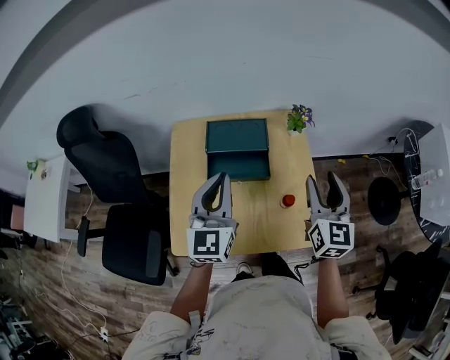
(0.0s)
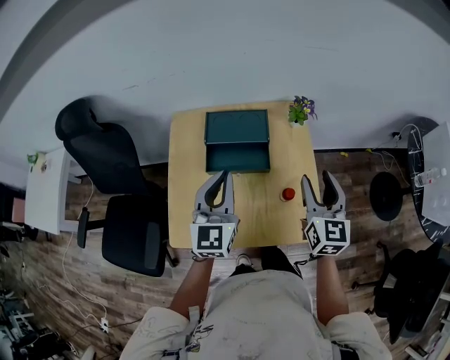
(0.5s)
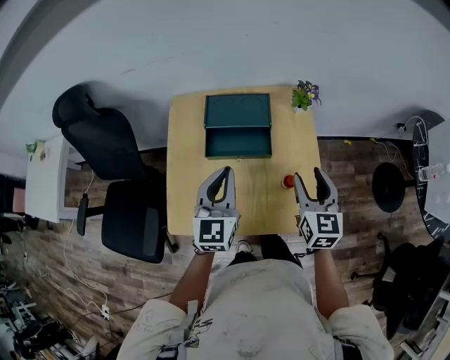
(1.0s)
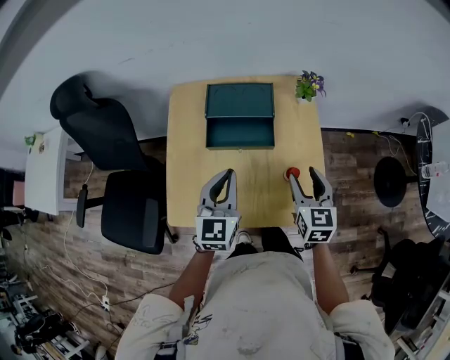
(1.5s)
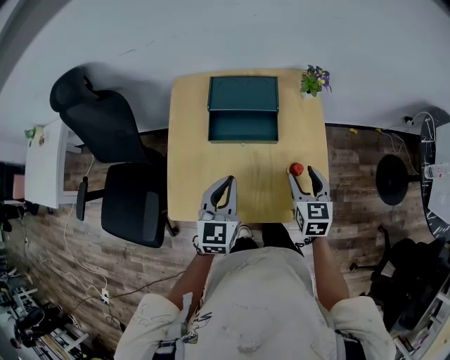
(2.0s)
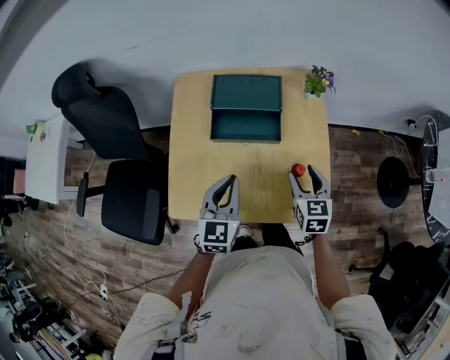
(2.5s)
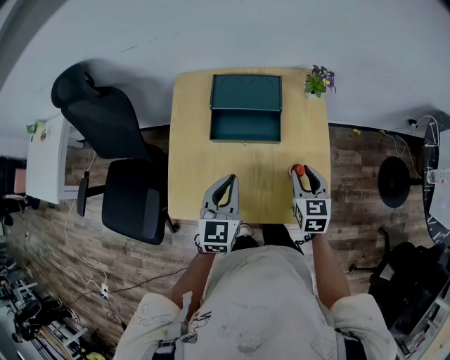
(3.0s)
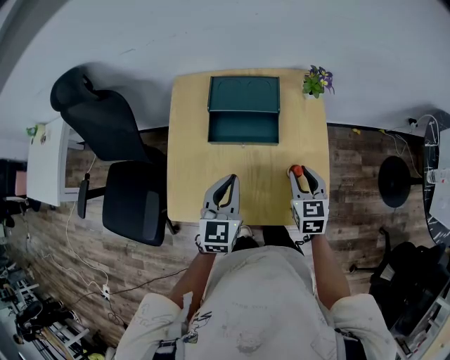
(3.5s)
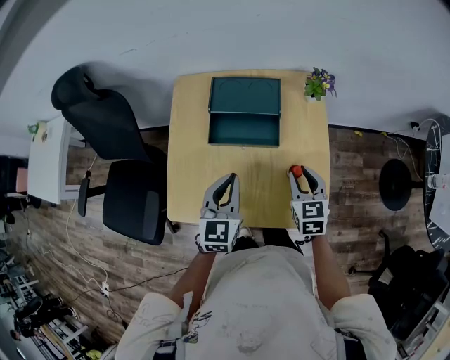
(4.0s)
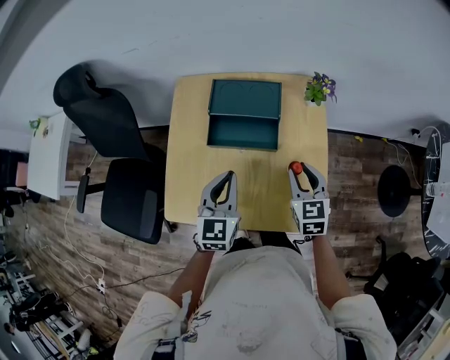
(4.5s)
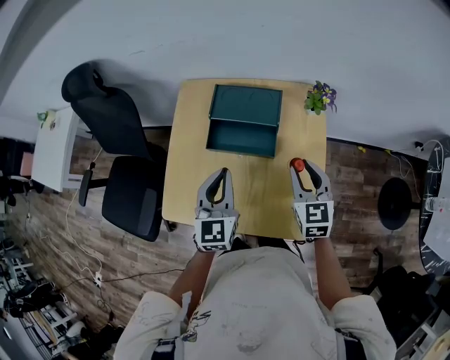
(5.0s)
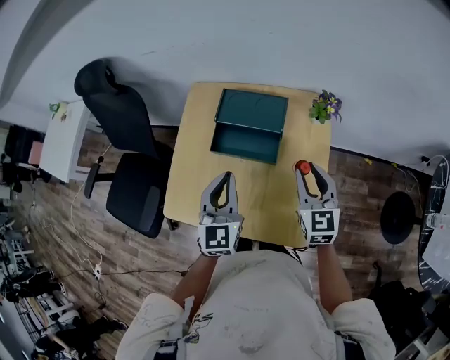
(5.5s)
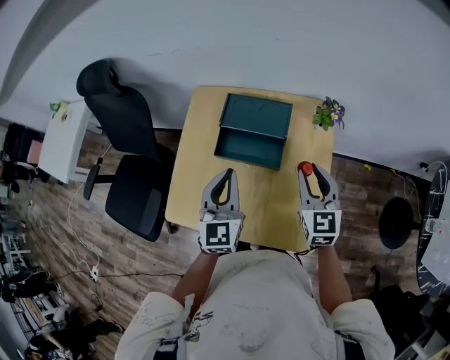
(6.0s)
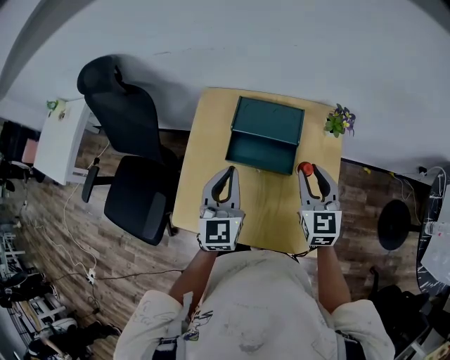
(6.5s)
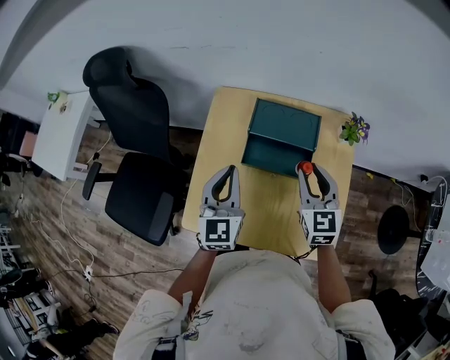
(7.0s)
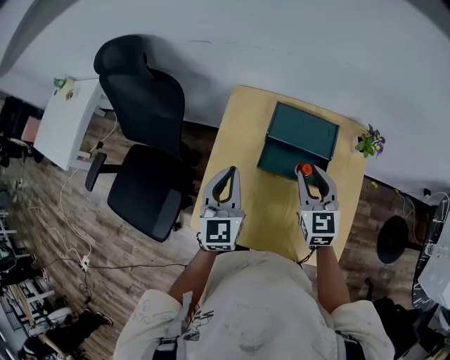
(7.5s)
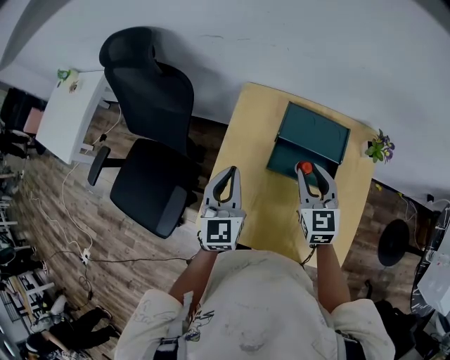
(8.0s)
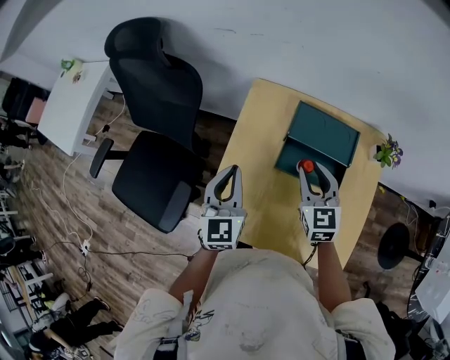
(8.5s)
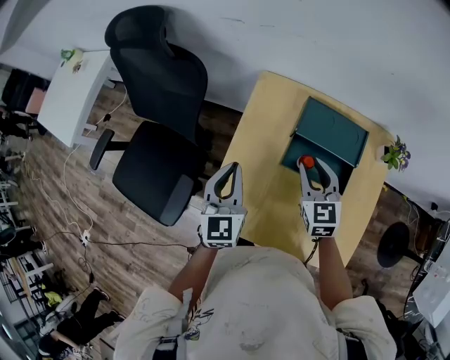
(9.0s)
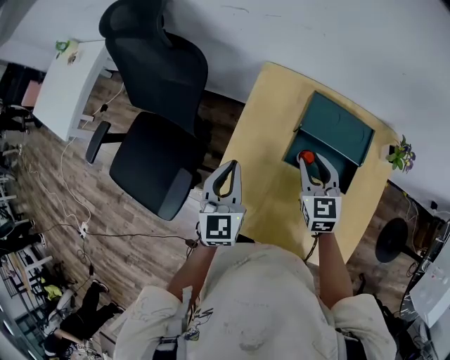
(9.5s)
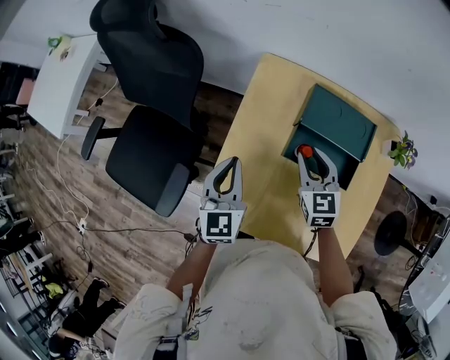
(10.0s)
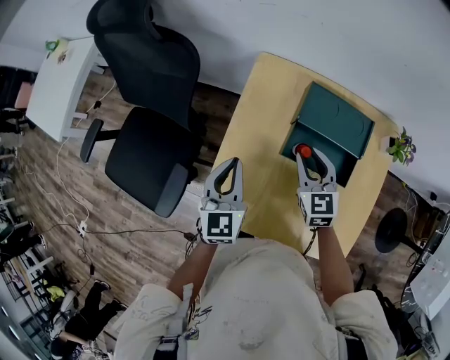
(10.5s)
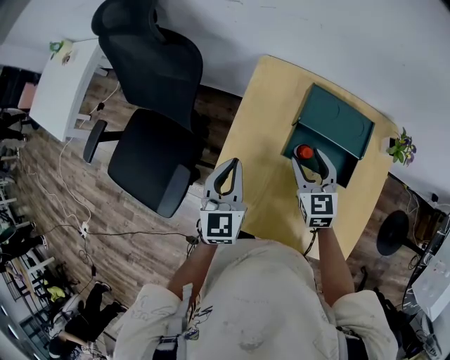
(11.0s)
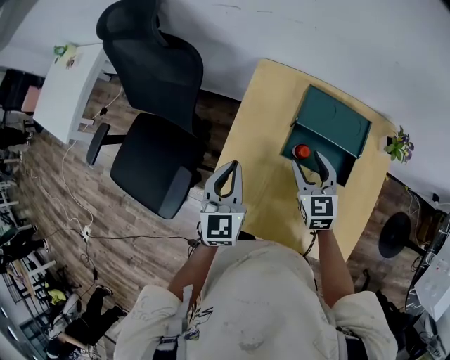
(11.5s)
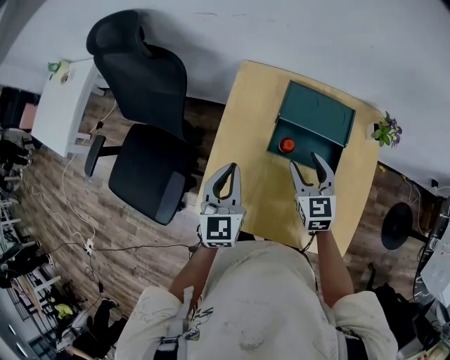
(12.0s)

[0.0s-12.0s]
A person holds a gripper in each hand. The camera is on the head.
0.0s to 2.0s: The left gripper goes approximately 15 cm downward and backward. Meanwhile the right gripper goes some 20 cm downward, and changes its angle by roughly 30 degrees.
2.0s to 4.0s: The right gripper closes its fingers.
4.0s to 6.0s: The left gripper is displaced upward by approximately 5 cm; the right gripper is displaced upward and forward by about 10 cm.
6.0s to 8.0s: The right gripper heads to the left and forward, covering approximately 20 cm; the left gripper heads to the left, covering roughly 20 cm.
8.0s to 10.0s: Both grippers move downward, about 5 cm.
10.0s to 12.0s: The left gripper moves about 5 cm, while the right gripper heads backward, covering roughly 5 cm, and opens its fingers.

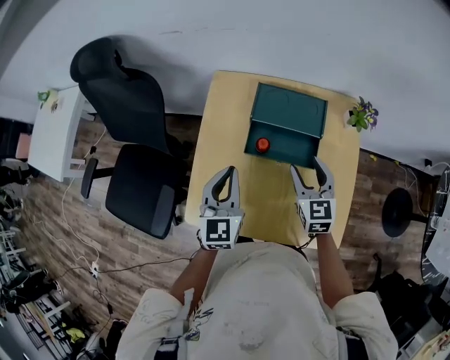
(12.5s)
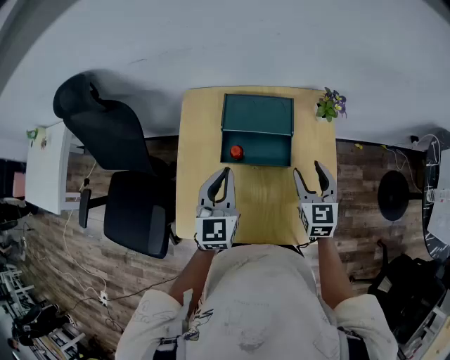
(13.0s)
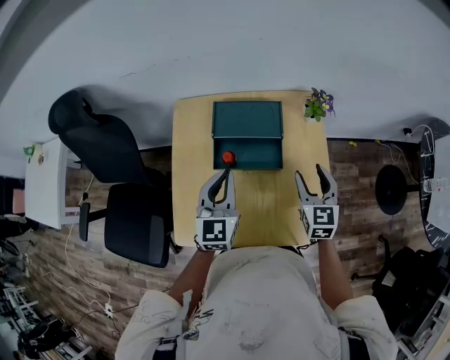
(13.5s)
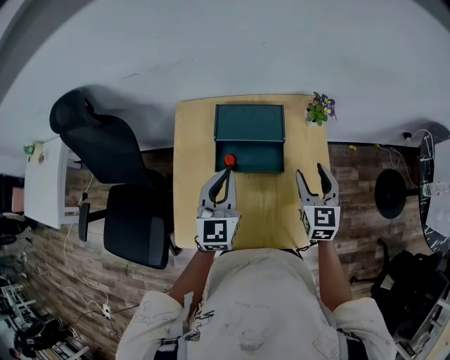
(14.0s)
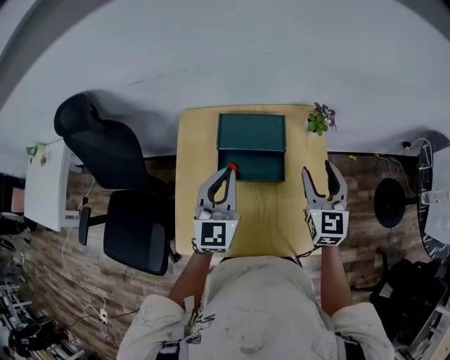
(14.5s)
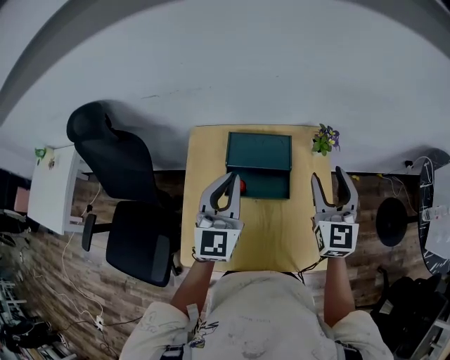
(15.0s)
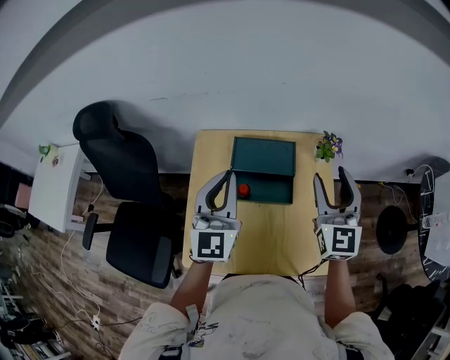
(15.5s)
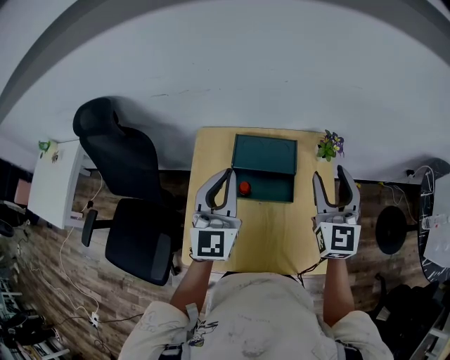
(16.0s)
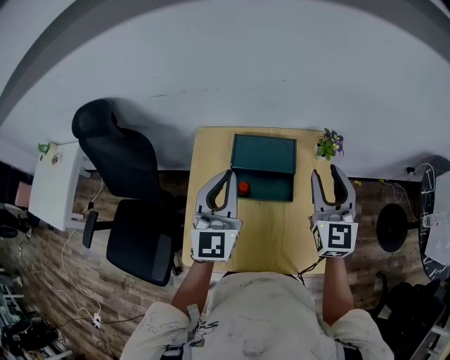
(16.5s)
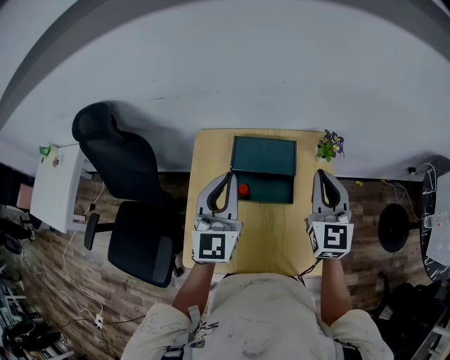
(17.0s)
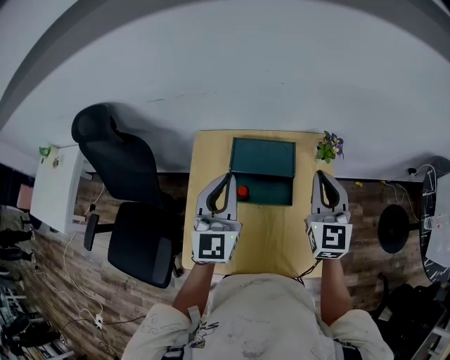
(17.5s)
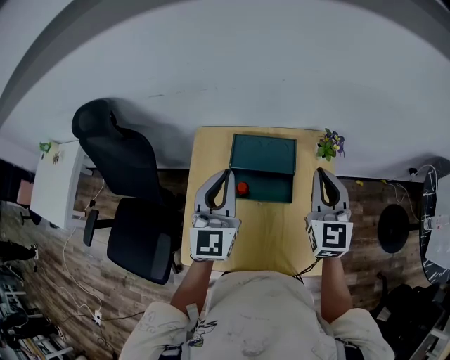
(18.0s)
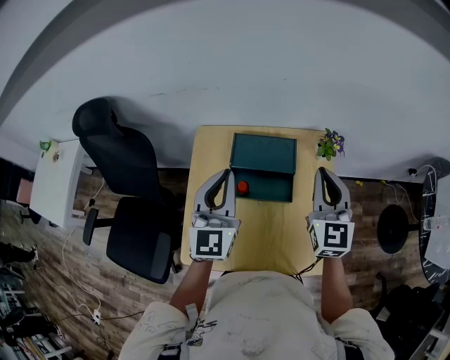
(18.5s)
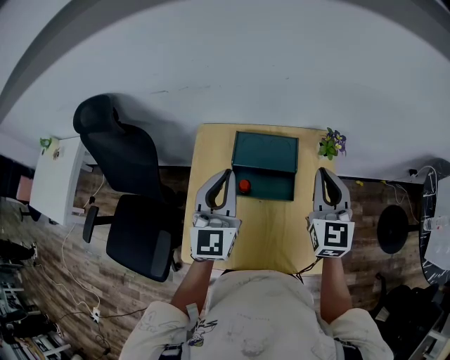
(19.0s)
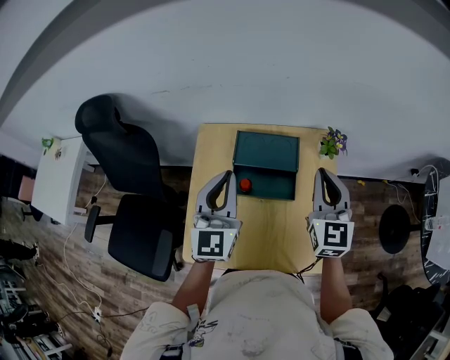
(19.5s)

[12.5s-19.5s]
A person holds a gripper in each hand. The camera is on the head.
12.5s to 14.5s: The right gripper is displaced to the right and upward by roughly 15 cm, and swivels about 20 degrees. The left gripper is displaced to the right, upward and forward by roughly 10 cm.
14.5s to 16.0s: Both grippers travel together upward, some 10 cm.
16.0s to 17.5s: The right gripper closes.
17.5s to 19.5s: The grippers move only a little.

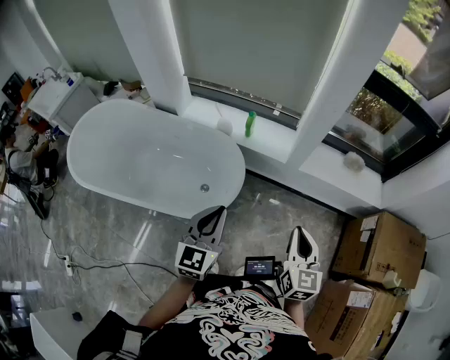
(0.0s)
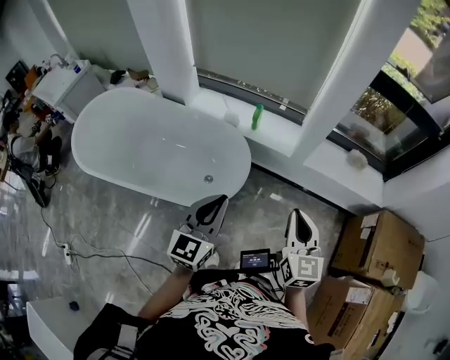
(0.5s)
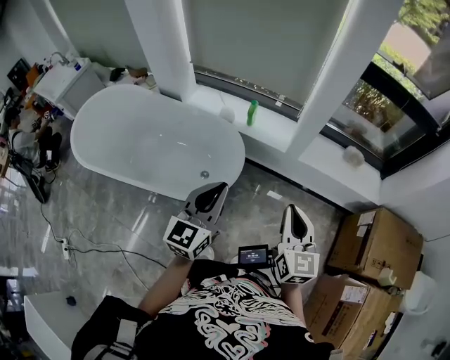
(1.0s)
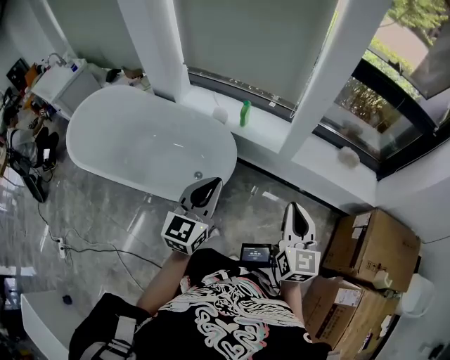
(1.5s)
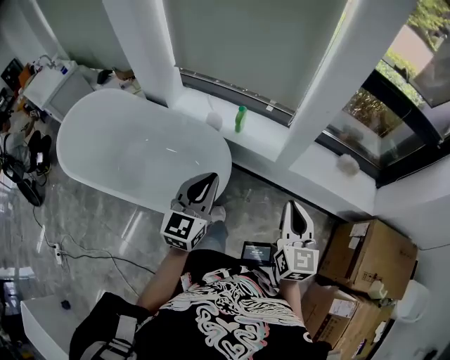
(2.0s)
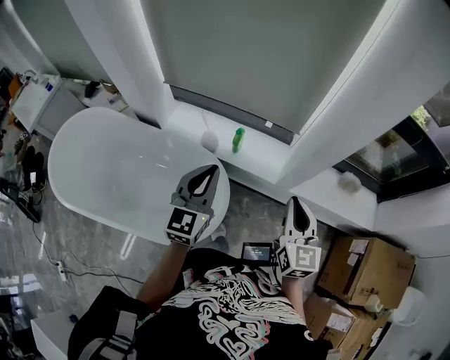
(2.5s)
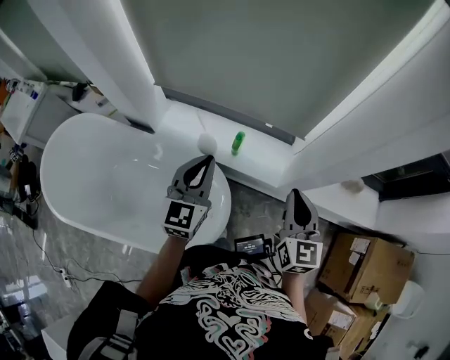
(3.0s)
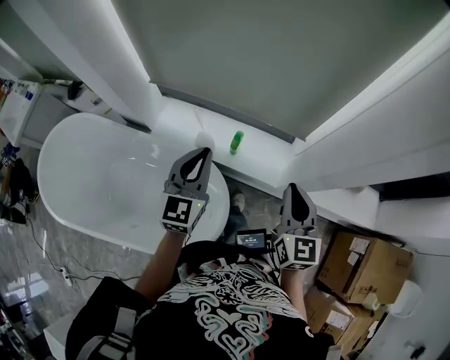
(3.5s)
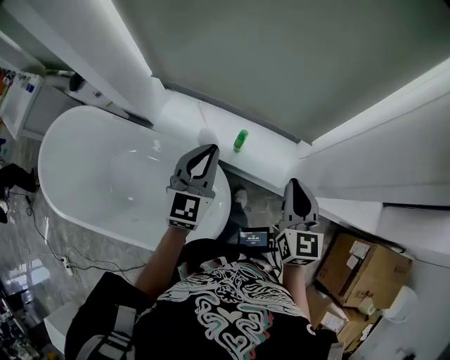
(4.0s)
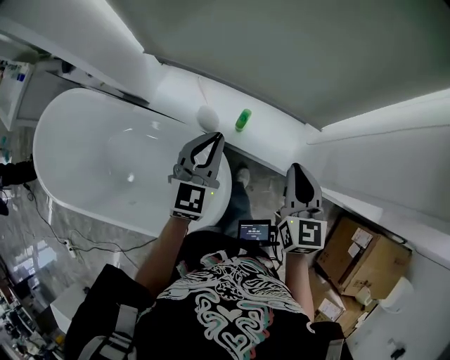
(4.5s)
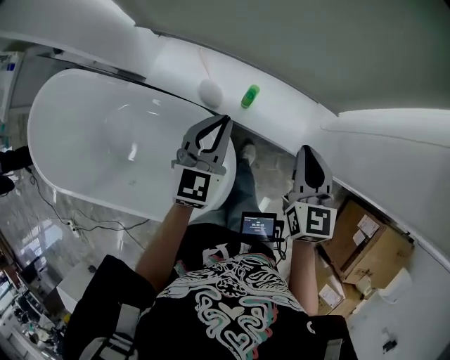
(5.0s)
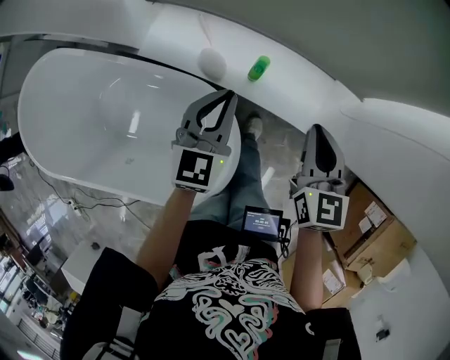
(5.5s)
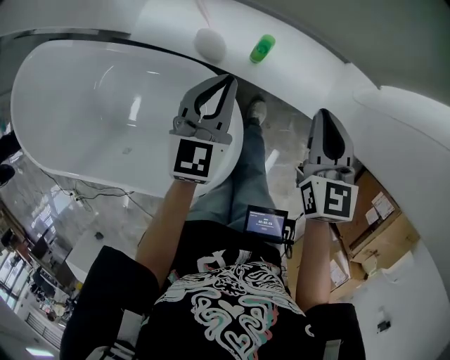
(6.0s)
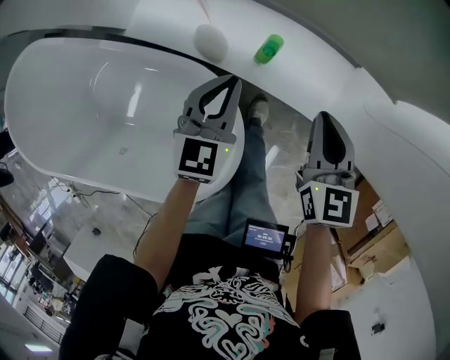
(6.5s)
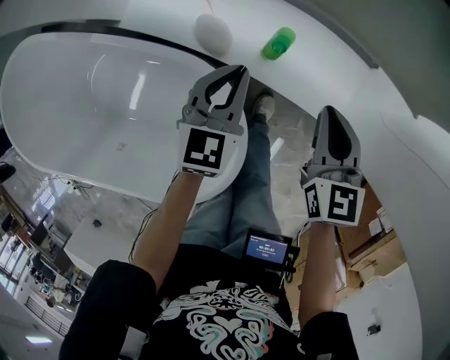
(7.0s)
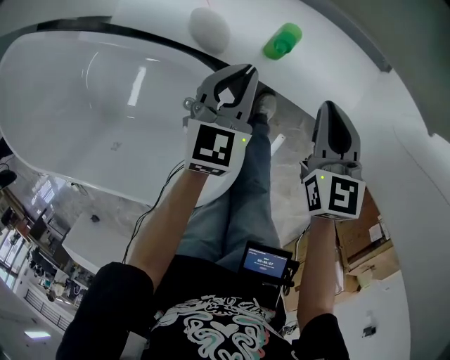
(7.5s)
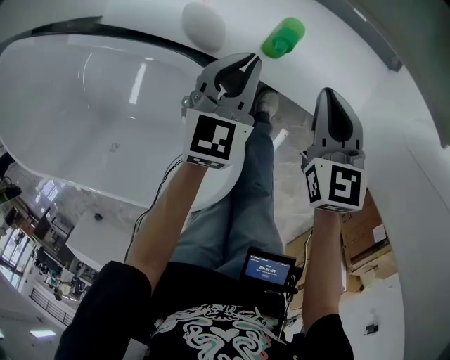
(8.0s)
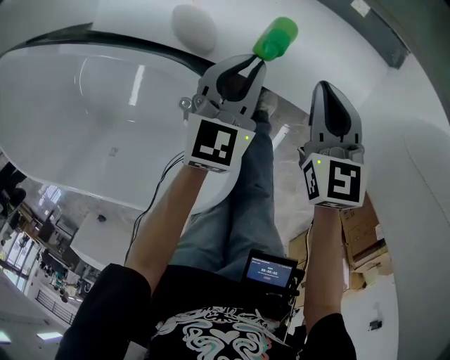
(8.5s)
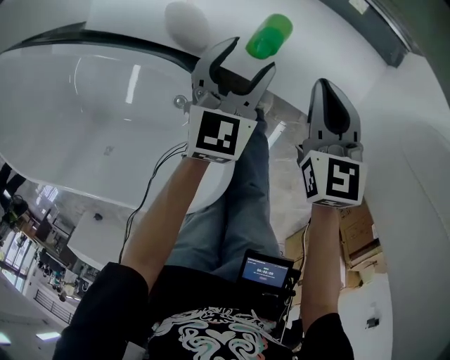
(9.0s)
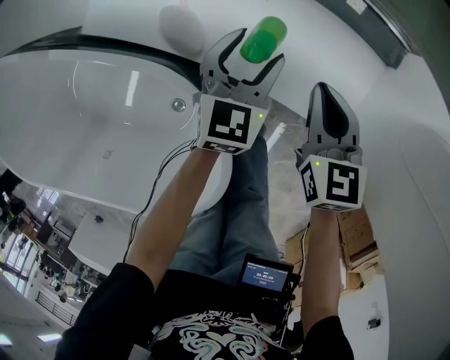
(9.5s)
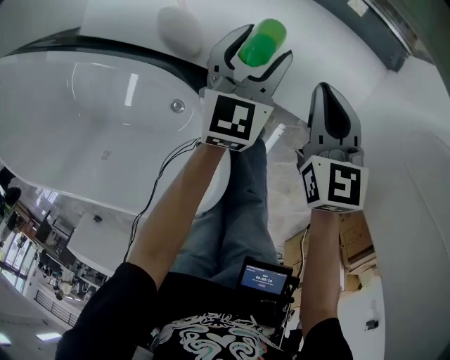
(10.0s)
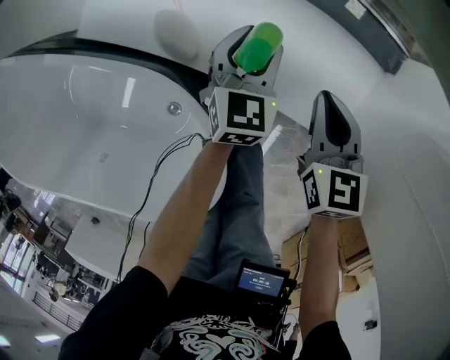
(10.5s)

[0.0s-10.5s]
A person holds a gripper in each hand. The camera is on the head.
0.0s to 2.0s: Both grippers travel together forward, roughly 10 cm.
2.0s to 4.0s: The grippers both shift forward by about 40 cm.
4.0s to 6.5s: The left gripper heads downward, covering about 30 cm, and swivels approximately 20 degrees. Meanwhile the right gripper heads downward and forward, covering roughly 30 cm.
6.5s to 8.5s: The grippers both shift downward by about 15 cm.
8.5s to 10.5s: The left gripper is displaced forward and downward by roughly 10 cm, and opens its fingers.
